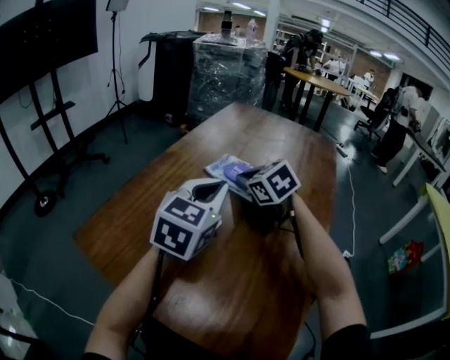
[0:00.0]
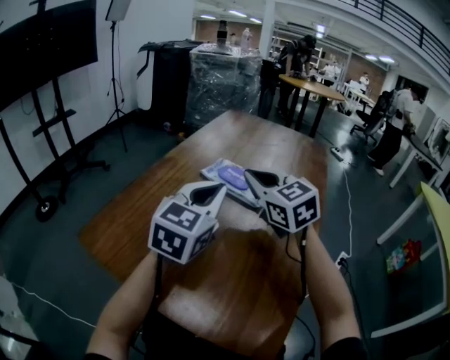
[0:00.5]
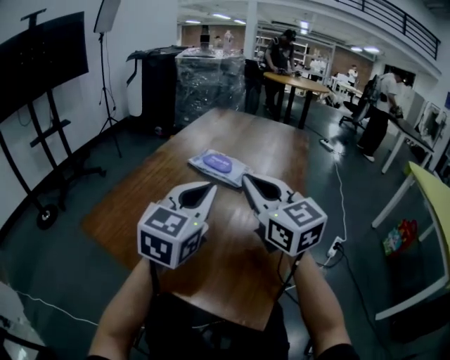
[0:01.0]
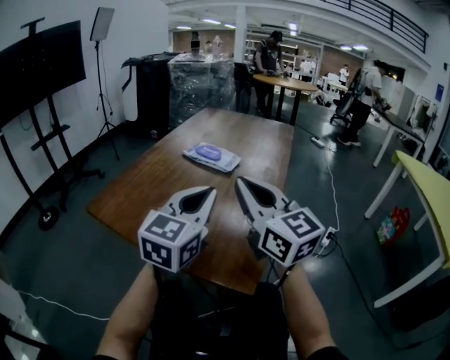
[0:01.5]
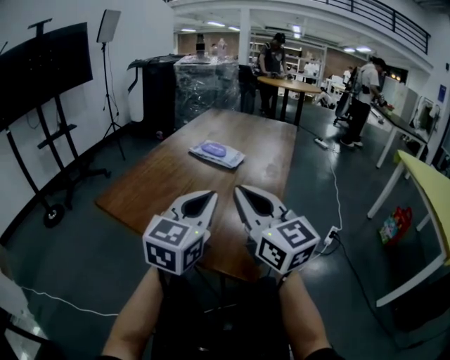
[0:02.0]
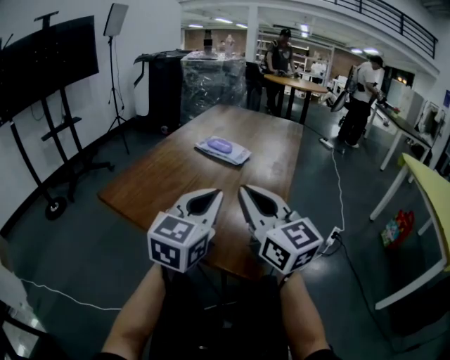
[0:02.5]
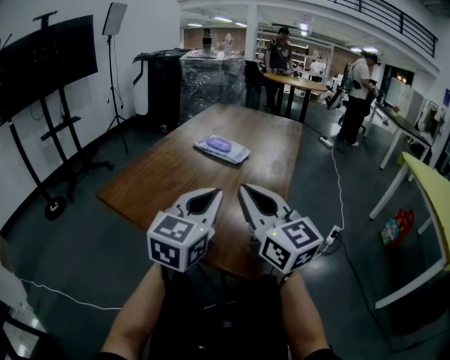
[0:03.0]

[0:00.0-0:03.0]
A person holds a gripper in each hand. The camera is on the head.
0.0 to 1.5 s: The right gripper goes roughly 35 cm backward and upward, and tips its fingers upward by some 50 degrees, while the left gripper is displaced backward by approximately 20 cm.
1.5 to 3.0 s: There are only small adjustments of the grippers.

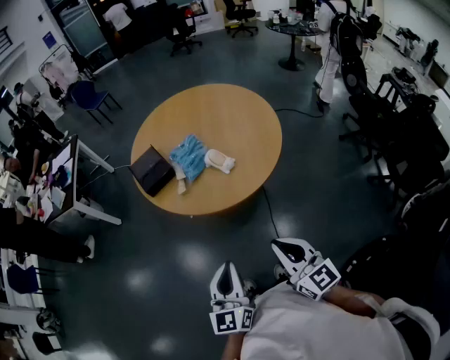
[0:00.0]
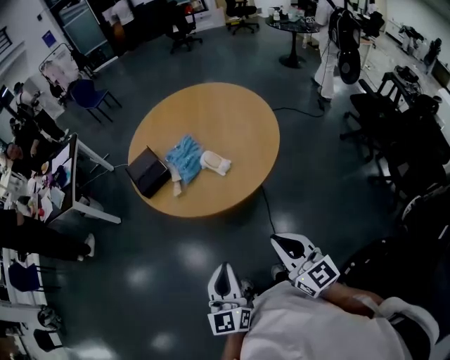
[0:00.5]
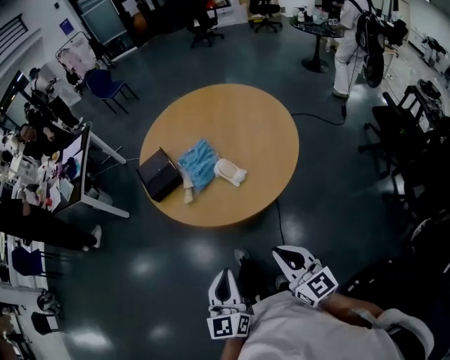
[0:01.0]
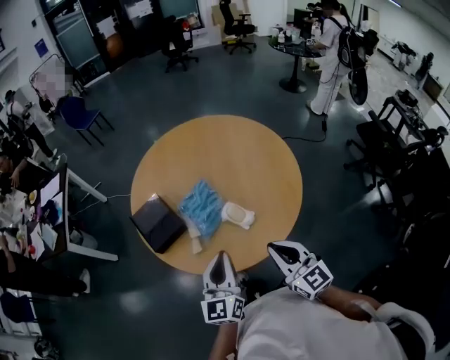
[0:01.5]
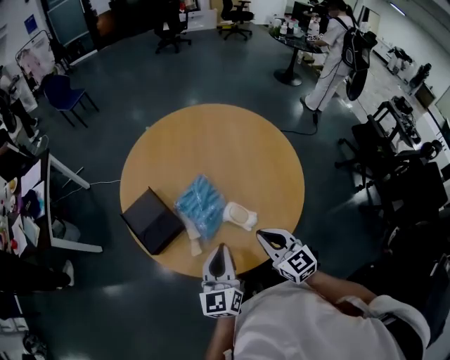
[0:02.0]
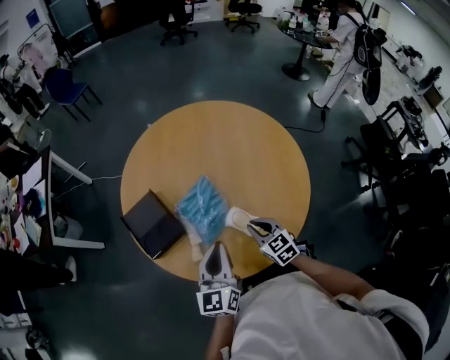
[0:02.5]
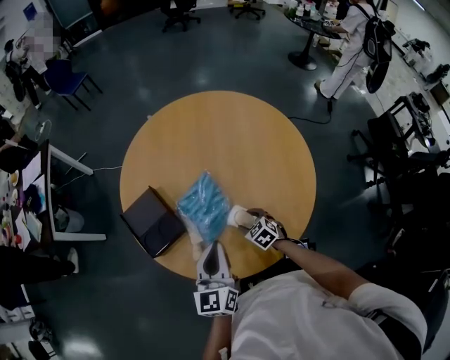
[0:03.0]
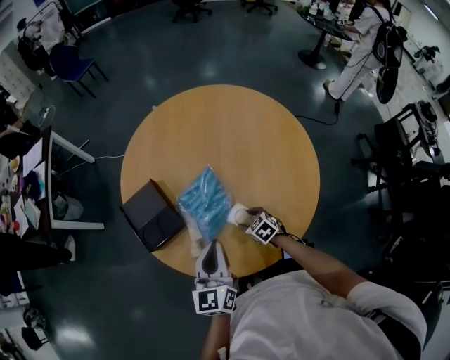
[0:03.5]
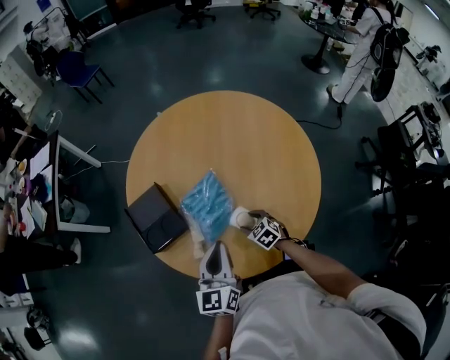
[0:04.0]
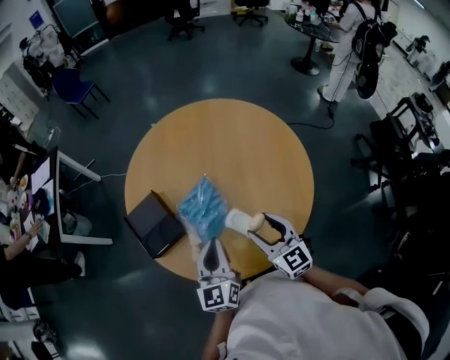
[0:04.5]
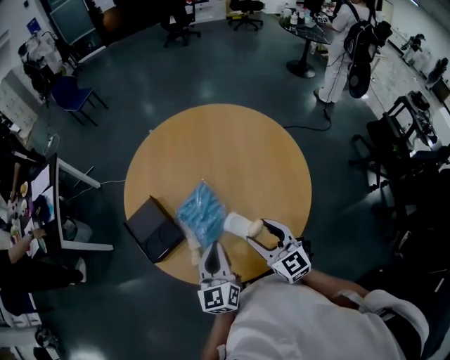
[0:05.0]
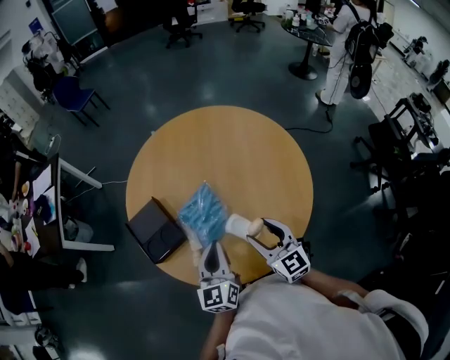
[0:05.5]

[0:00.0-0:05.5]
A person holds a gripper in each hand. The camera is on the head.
0.0 to 2.0 s: Both grippers move forward, approximately 40 cm.
2.0 to 3.5 s: The left gripper goes about 5 cm forward. The right gripper moves downward and forward, some 30 cm, points its fingers about 40 degrees further downward, and opens up.
3.5 to 5.5 s: The right gripper travels upward by approximately 25 cm, and angles its fingers upward, by approximately 50 degrees.

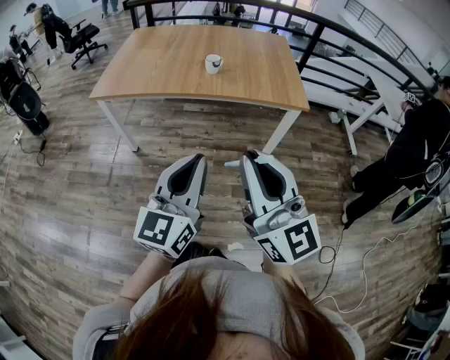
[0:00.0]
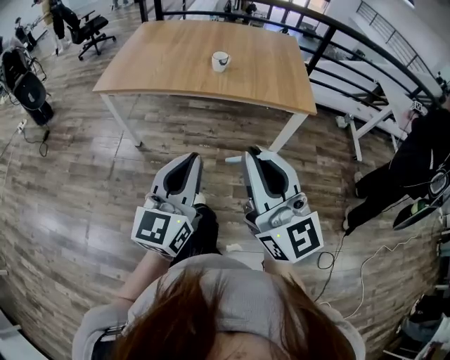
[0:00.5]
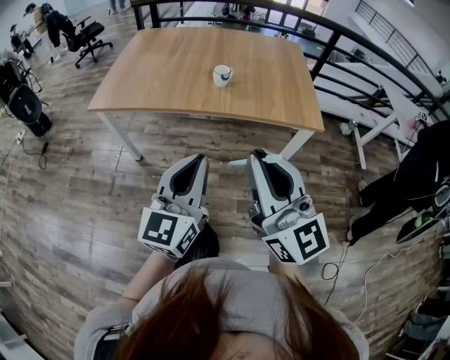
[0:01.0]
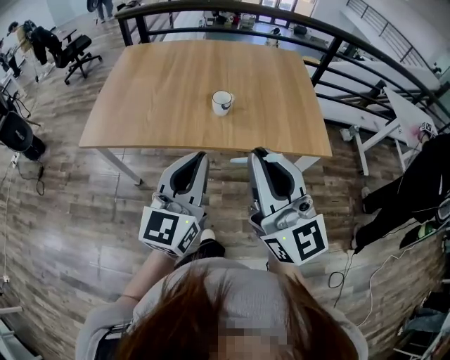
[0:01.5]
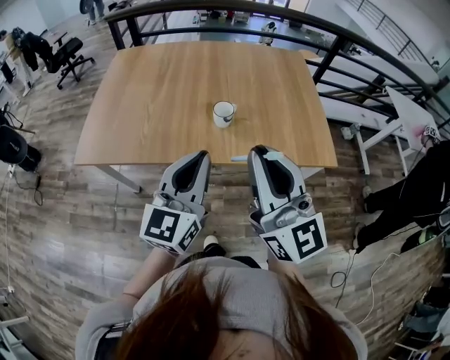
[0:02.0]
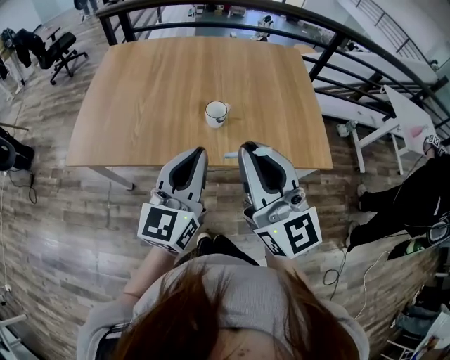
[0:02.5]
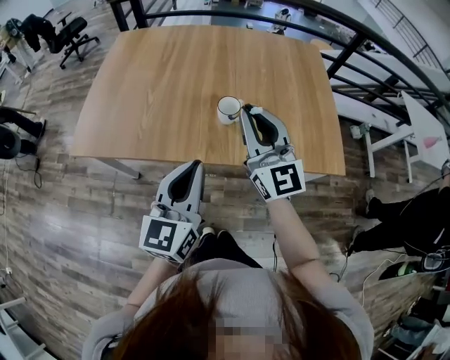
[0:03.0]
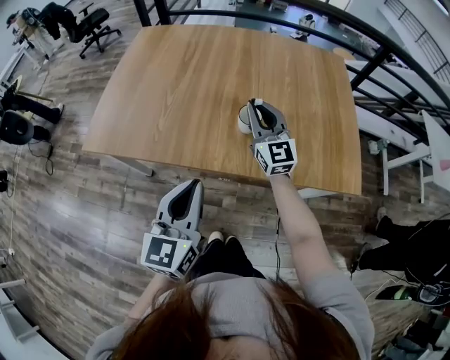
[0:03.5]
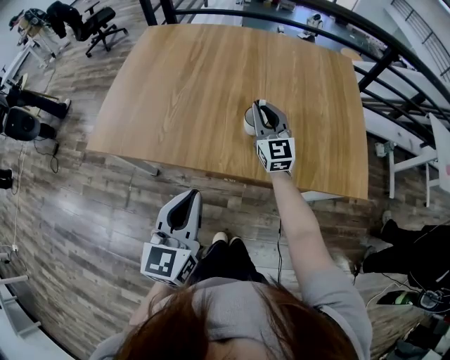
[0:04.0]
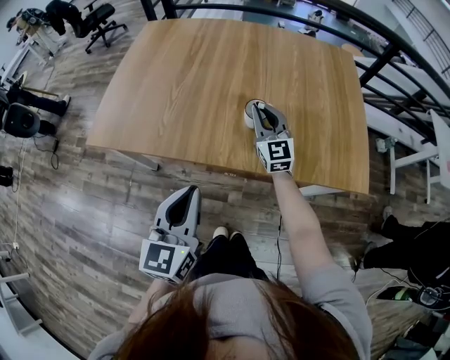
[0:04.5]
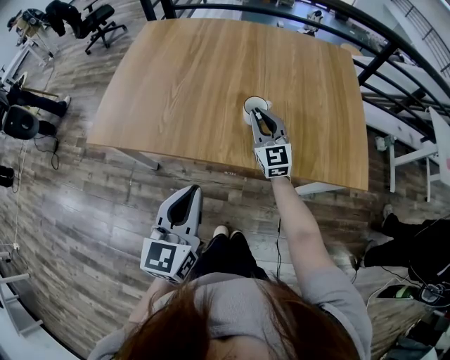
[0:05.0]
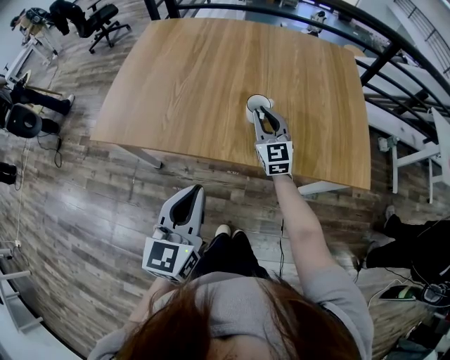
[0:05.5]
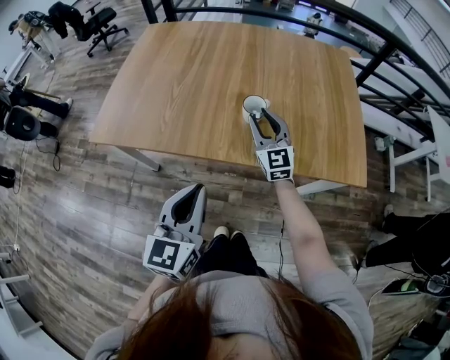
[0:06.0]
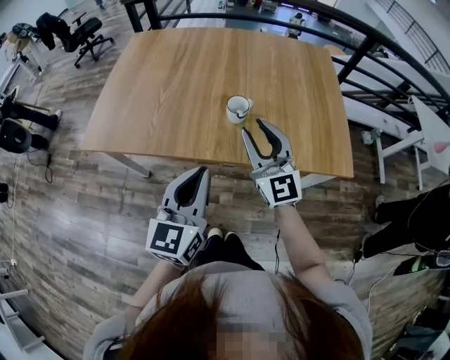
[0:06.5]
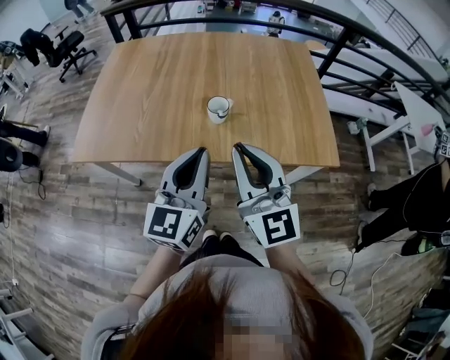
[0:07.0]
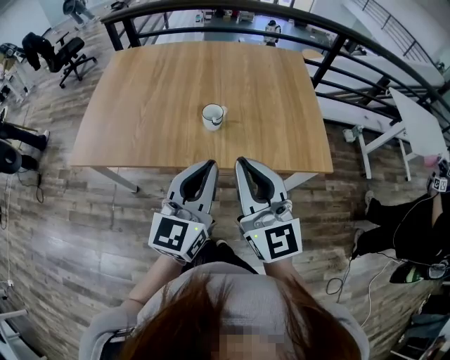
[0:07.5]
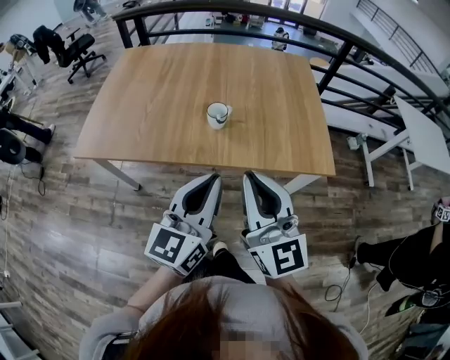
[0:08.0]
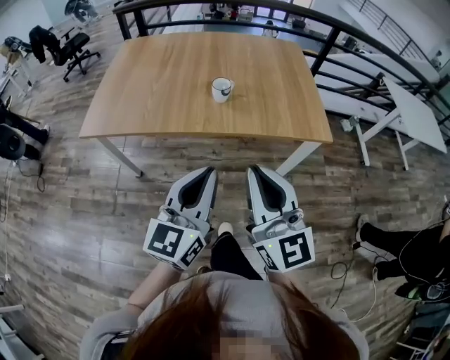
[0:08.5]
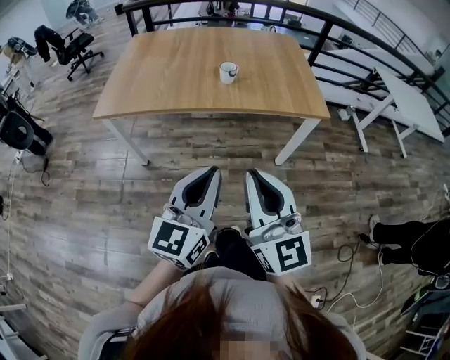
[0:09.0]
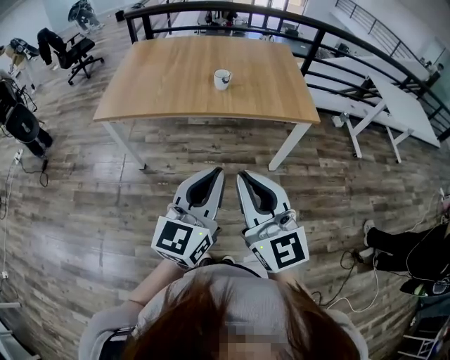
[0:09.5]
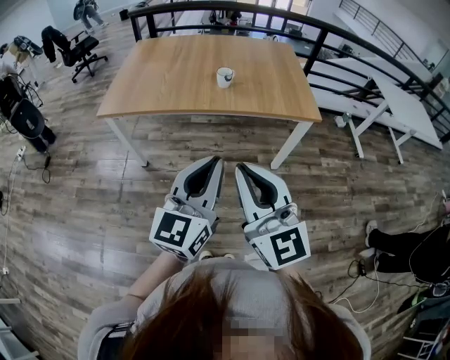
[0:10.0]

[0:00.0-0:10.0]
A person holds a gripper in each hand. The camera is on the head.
0.0 to 2.0 s: Both grippers travel together forward, approximately 40 cm.
2.0 to 4.0 s: The left gripper heads downward and to the left, covering approximately 10 cm, and rotates approximately 20 degrees. Meanwhile the right gripper moves forward and downward, about 40 cm.
4.0 to 6.0 s: The right gripper travels backward by about 5 cm, and opens its fingers.
6.0 to 8.0 s: The left gripper goes about 15 cm to the right and upward. Meanwhile the right gripper goes some 35 cm backward and upward, and closes.
8.0 to 10.0 s: Both grippers move backward, approximately 30 cm.

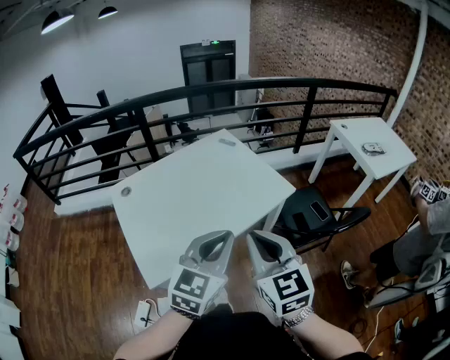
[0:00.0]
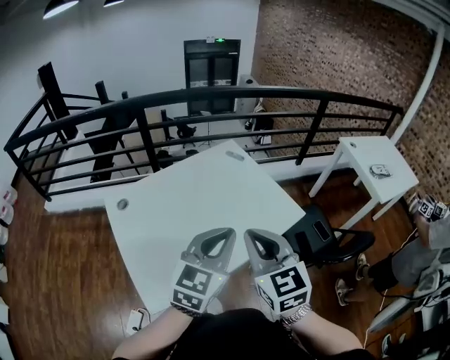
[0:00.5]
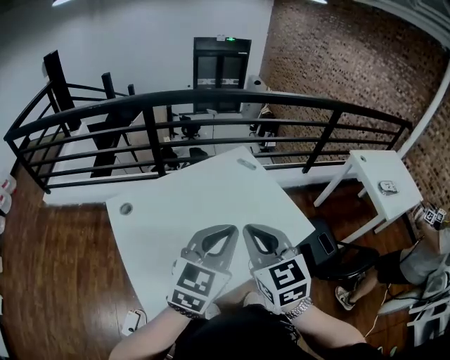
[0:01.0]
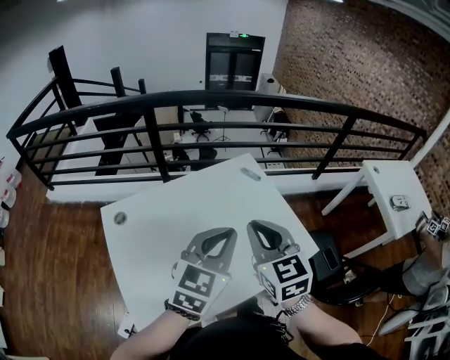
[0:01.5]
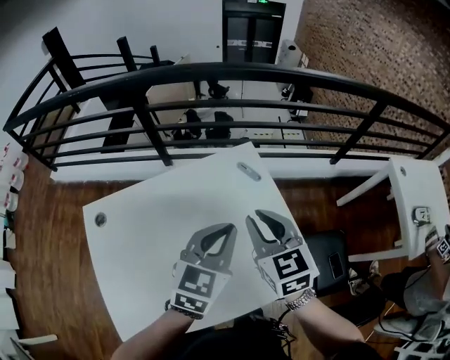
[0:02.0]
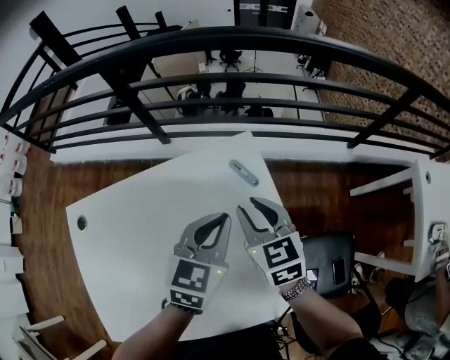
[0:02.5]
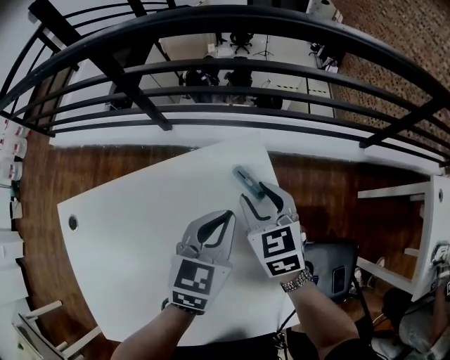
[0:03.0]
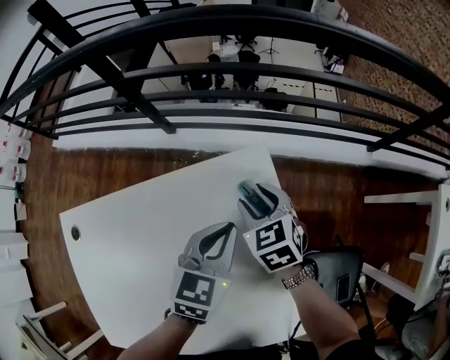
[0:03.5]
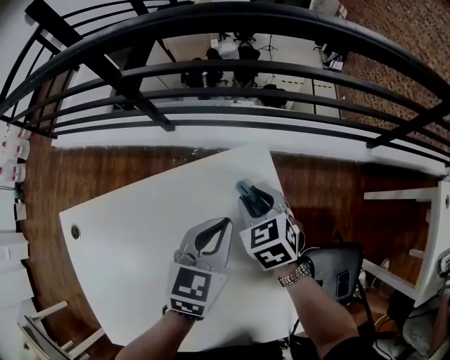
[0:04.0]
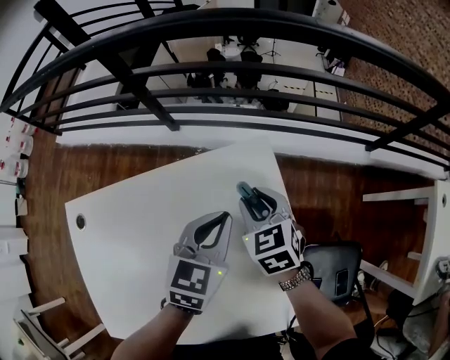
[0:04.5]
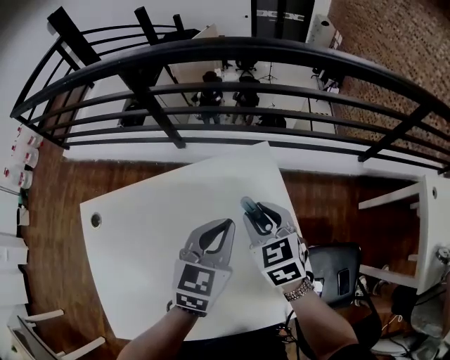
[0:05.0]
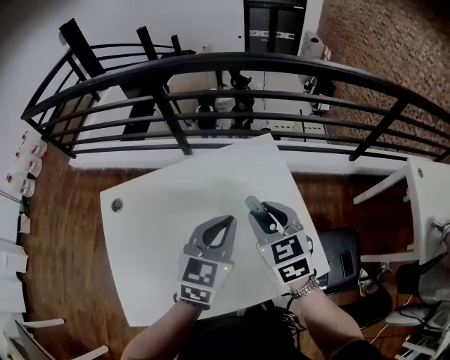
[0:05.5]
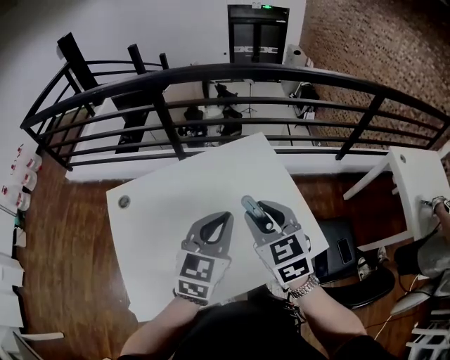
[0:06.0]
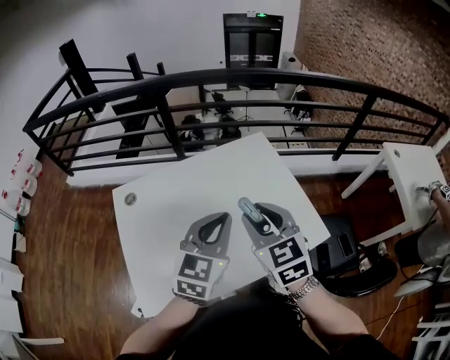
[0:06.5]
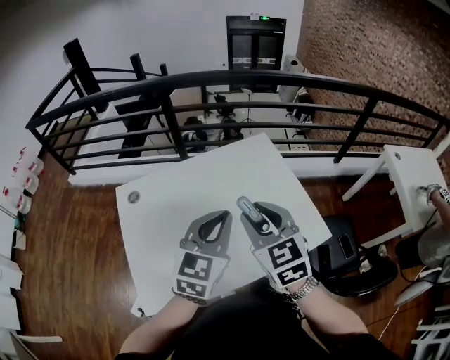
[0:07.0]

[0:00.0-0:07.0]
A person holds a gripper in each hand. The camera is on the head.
0.0 to 2.0 s: Both grippers are carried forward, some 50 cm.
2.0 to 3.5 s: The grippers both shift forward and downward by roughly 30 cm. The right gripper changes its angle by approximately 20 degrees, and opens up.
3.5 to 5.0 s: The right gripper is displaced backward and upward by roughly 15 cm. Meanwhile the left gripper is displaced upward and backward by approximately 10 cm.
5.0 to 7.0 s: The right gripper moves backward and upward, roughly 30 cm. The left gripper is displaced backward, upward and to the left by about 30 cm.

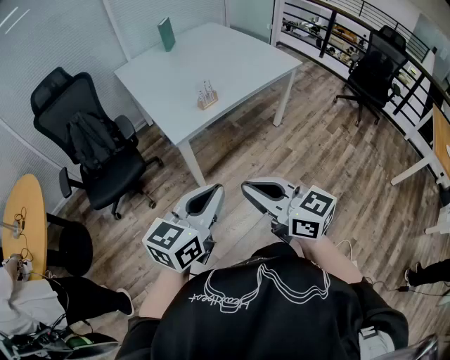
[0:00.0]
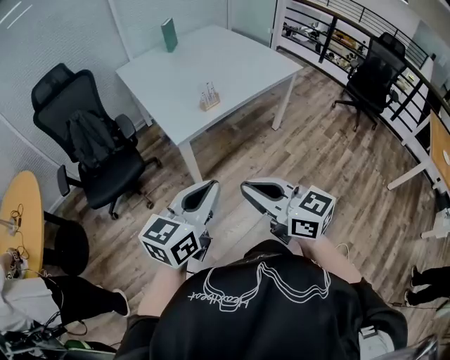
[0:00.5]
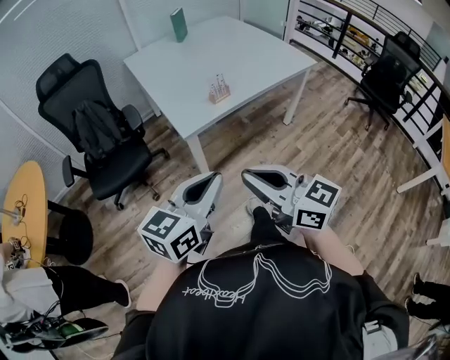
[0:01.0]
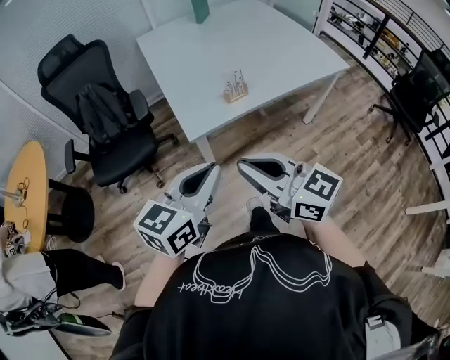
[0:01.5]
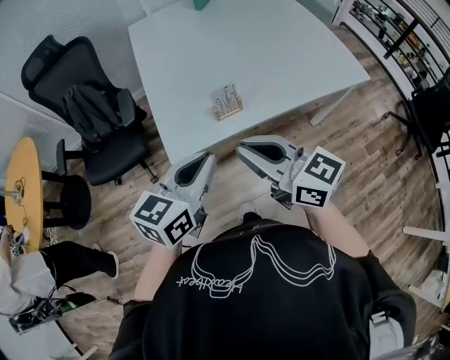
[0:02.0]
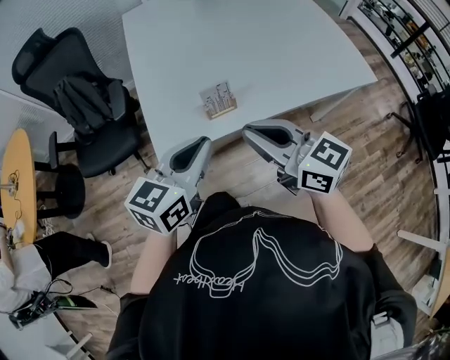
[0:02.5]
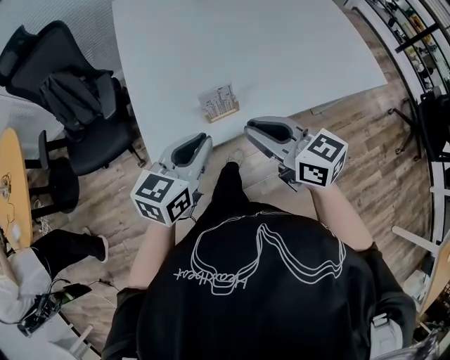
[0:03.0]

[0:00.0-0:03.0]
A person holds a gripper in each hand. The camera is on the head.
0.0 to 1.5 s: The grippers both shift forward by some 15 cm.
1.5 to 3.0 s: Both grippers travel together forward, to the right and downward, approximately 35 cm.
